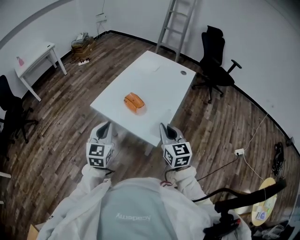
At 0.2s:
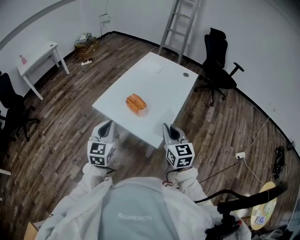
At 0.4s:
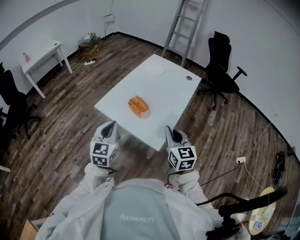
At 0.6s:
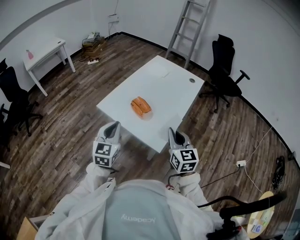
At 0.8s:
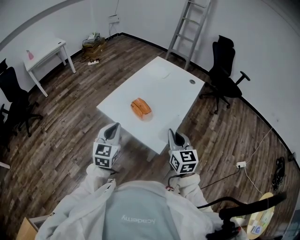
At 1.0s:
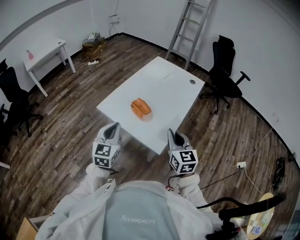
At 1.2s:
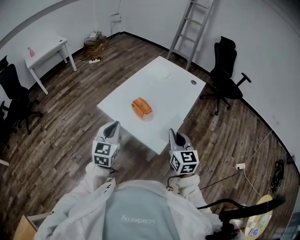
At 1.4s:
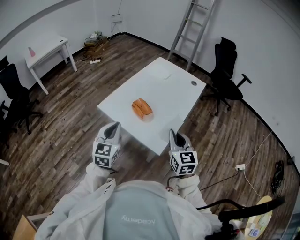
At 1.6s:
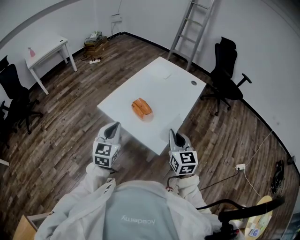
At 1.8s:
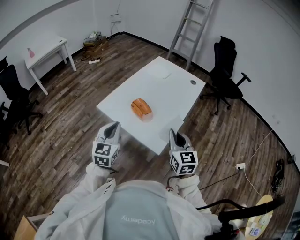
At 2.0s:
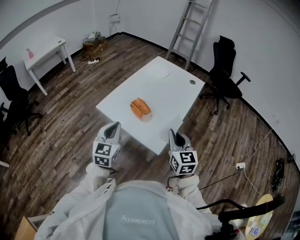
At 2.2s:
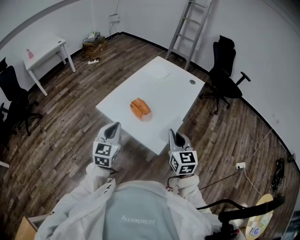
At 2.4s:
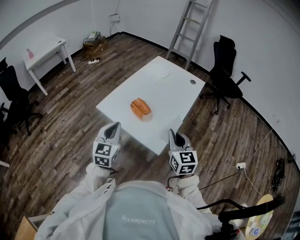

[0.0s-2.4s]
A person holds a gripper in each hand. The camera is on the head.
0.0s to 1.2s: There are only small adjustments of the grippers.
1.2s to 2.4s: Neither gripper changes place.

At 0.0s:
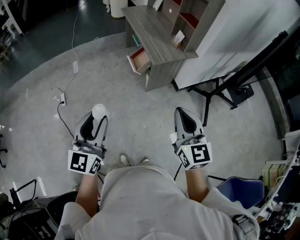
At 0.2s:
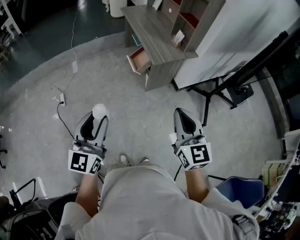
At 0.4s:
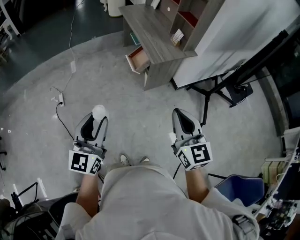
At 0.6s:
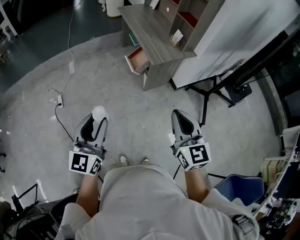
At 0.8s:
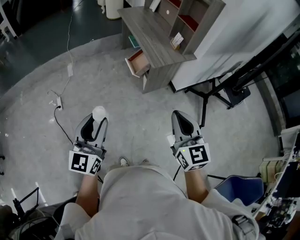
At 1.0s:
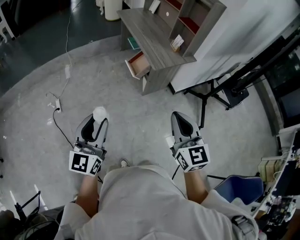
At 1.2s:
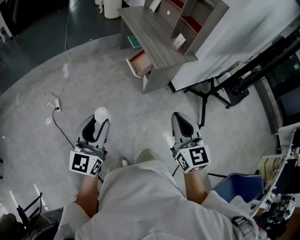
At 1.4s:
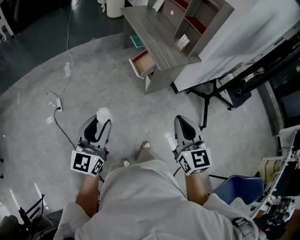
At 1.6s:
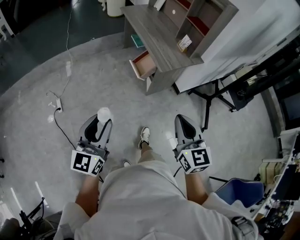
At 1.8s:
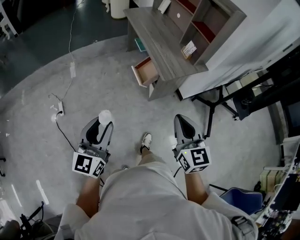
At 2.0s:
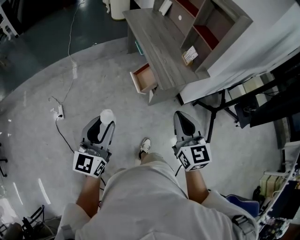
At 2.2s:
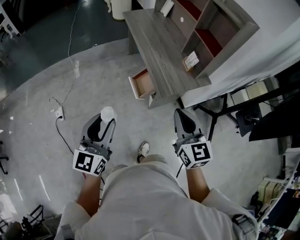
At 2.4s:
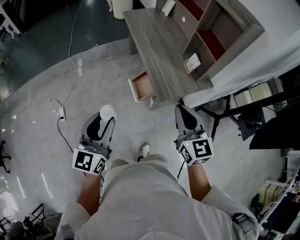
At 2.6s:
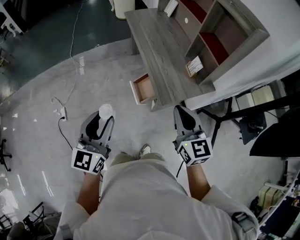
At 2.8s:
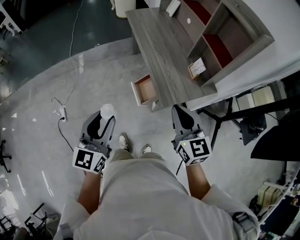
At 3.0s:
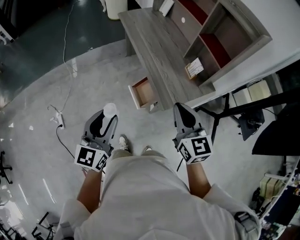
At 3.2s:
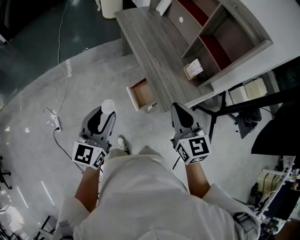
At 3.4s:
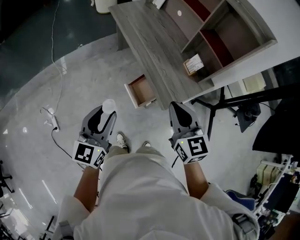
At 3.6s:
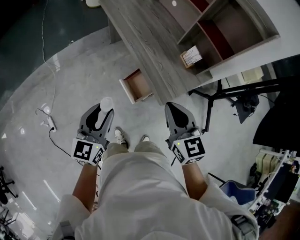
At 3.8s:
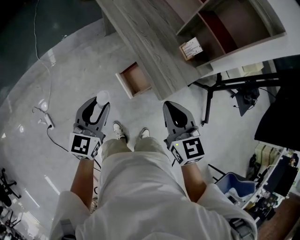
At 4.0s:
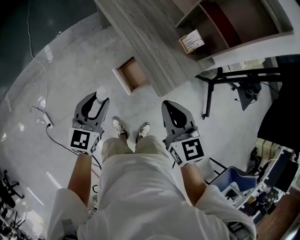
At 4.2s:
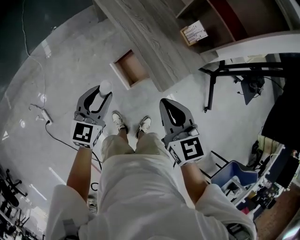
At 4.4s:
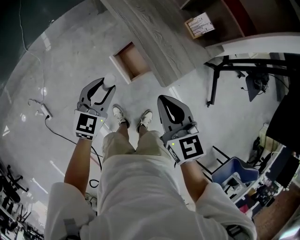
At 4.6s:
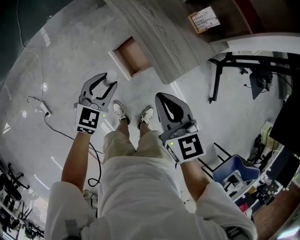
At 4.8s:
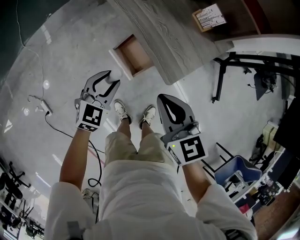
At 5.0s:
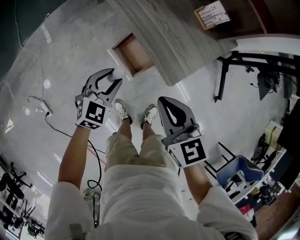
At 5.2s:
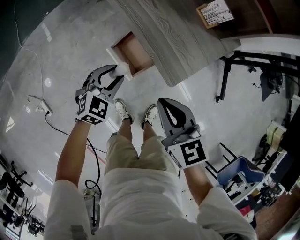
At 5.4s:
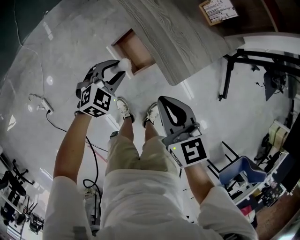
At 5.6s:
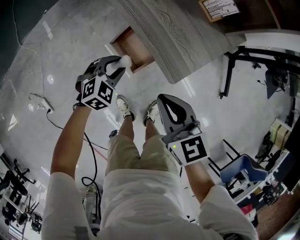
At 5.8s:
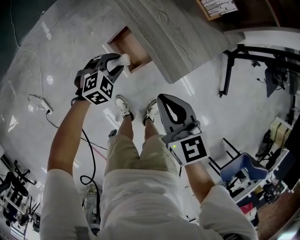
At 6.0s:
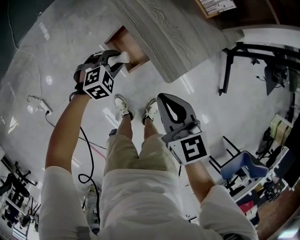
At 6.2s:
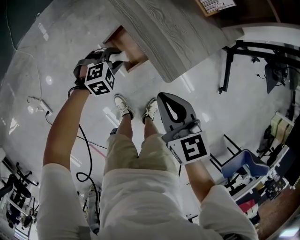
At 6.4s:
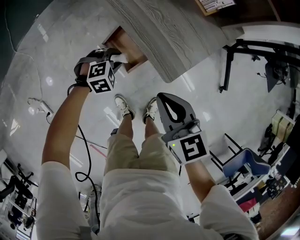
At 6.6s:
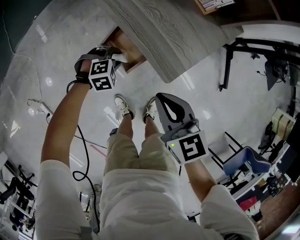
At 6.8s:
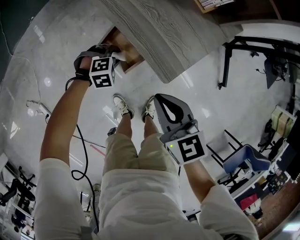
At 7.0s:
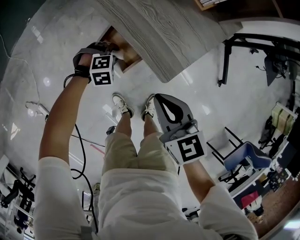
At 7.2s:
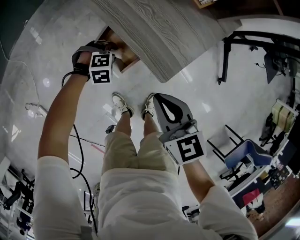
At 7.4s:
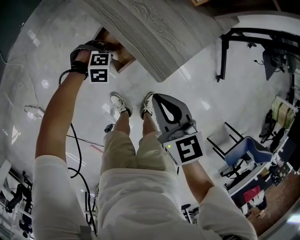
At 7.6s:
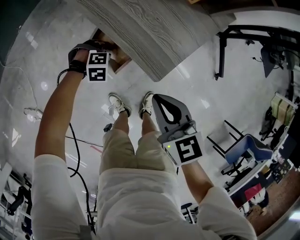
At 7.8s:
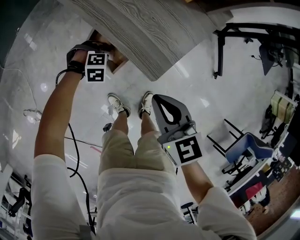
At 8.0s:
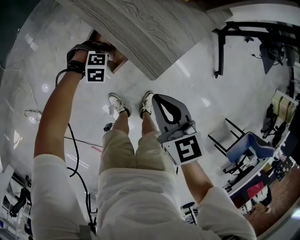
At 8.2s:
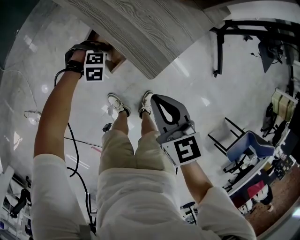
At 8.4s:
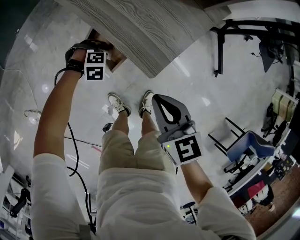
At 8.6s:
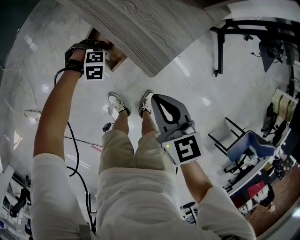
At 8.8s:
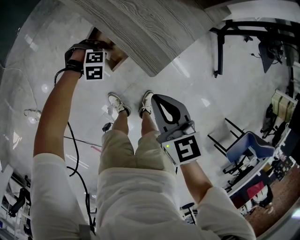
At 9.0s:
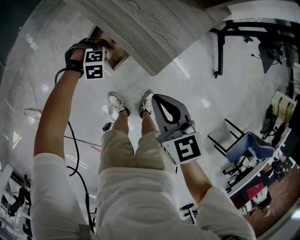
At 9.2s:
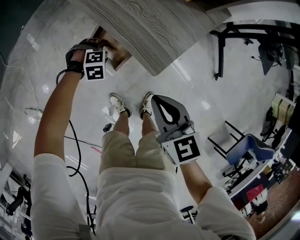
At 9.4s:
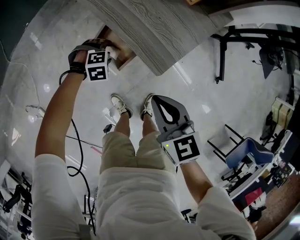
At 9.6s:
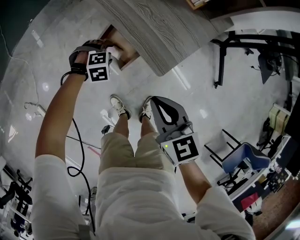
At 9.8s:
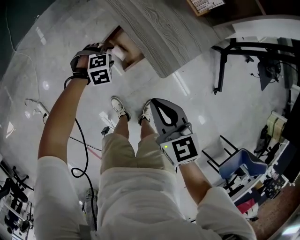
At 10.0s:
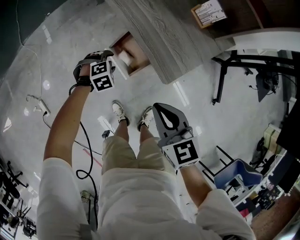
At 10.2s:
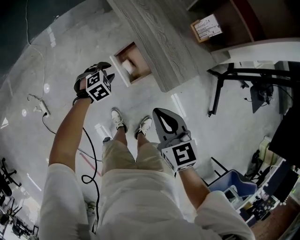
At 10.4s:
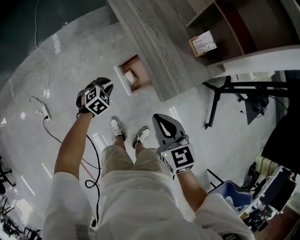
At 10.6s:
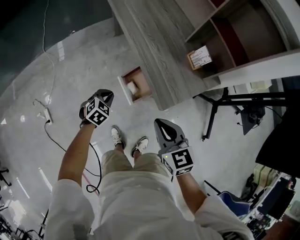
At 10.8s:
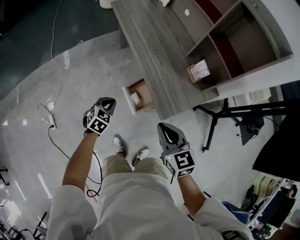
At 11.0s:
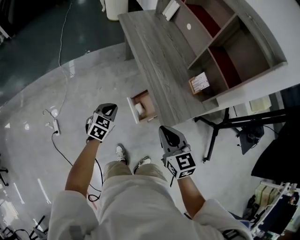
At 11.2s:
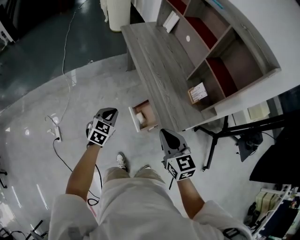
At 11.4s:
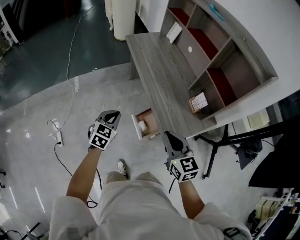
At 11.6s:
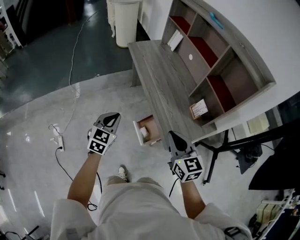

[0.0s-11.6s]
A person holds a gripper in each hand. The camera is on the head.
0.0s to 1.4s: The left gripper heads to the left and forward, covering some 10 cm, while the right gripper heads to the left, covering some 10 cm.
1.4s to 2.8s: Both grippers travel together forward, some 35 cm.
2.8s to 4.4s: The left gripper is displaced downward and forward by about 30 cm, and changes its angle by roughly 30 degrees; the right gripper heads downward, forward and to the left, covering approximately 15 cm.
4.4s to 5.8s: The left gripper travels downward by roughly 20 cm, and changes its angle by about 50 degrees. The right gripper goes roughly 10 cm downward.
5.8s to 7.2s: The left gripper heads downward, covering roughly 10 cm, and swivels approximately 30 degrees.
7.2s to 8.8s: The grippers stay close to where they were, moving slightly.
8.8s to 10.2s: The left gripper moves upward, roughly 10 cm, and twists approximately 40 degrees counterclockwise, seen from behind, while the right gripper moves upward, approximately 5 cm.
10.2s to 11.6s: The left gripper goes about 35 cm upward, tips its fingers upward by approximately 40 degrees, and closes its fingers, while the right gripper heads upward and forward, covering approximately 20 cm.

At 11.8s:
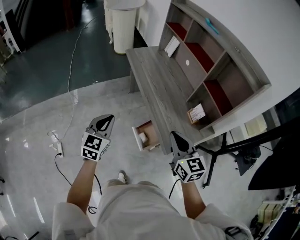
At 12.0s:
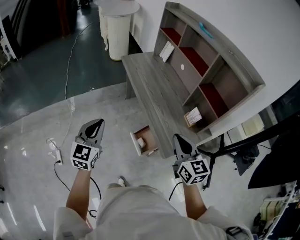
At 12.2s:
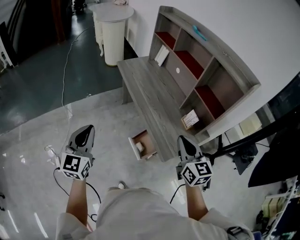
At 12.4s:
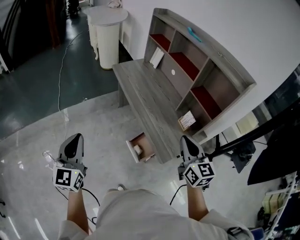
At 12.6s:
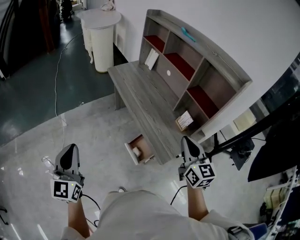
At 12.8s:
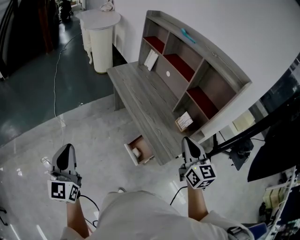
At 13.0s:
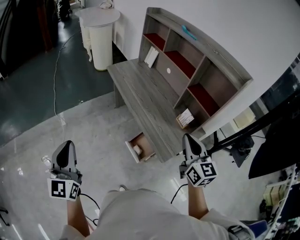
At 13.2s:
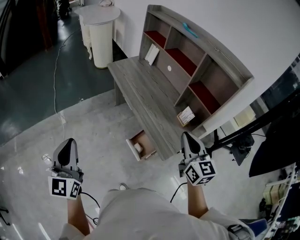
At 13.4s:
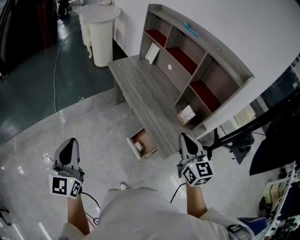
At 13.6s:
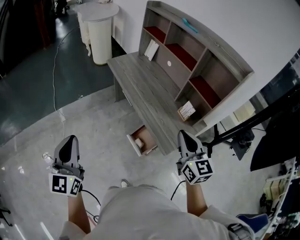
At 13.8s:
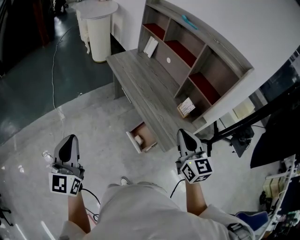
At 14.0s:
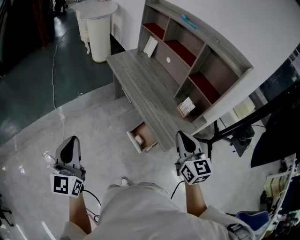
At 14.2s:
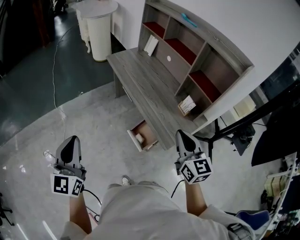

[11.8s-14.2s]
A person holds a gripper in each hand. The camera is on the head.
11.8s to 13.0s: The right gripper heads upward and to the right, covering about 10 cm. The left gripper moves upward, to the left and backward, about 20 cm, and swivels roughly 20 degrees.
13.0s to 14.2s: The right gripper shifts by approximately 5 cm.

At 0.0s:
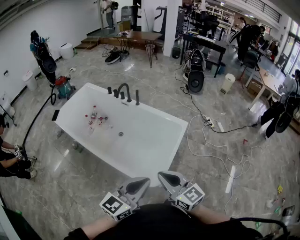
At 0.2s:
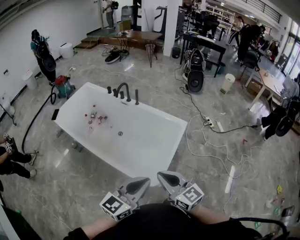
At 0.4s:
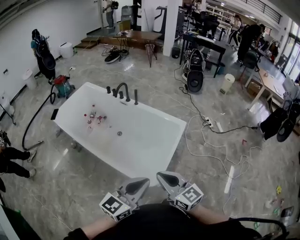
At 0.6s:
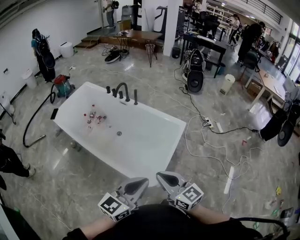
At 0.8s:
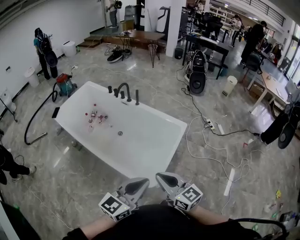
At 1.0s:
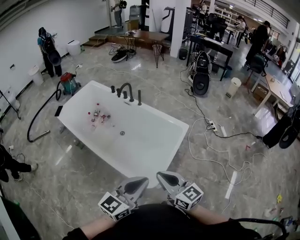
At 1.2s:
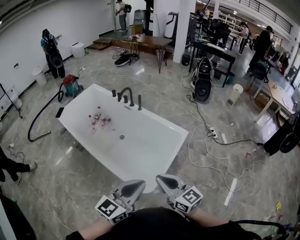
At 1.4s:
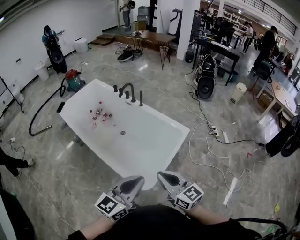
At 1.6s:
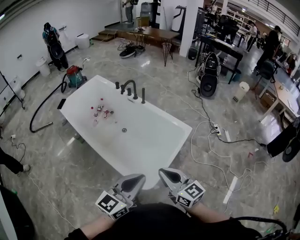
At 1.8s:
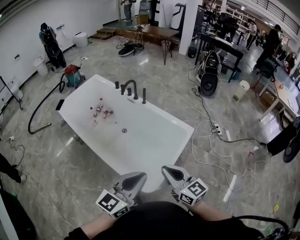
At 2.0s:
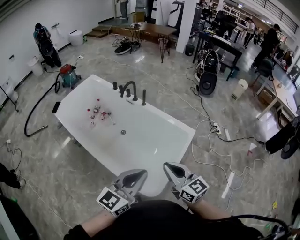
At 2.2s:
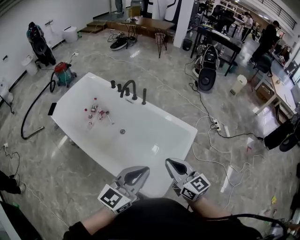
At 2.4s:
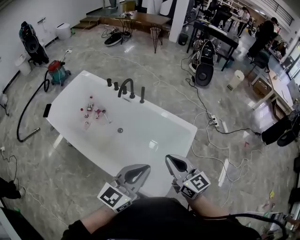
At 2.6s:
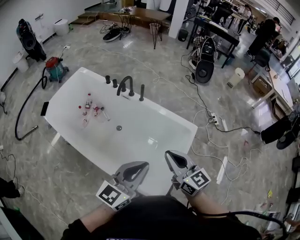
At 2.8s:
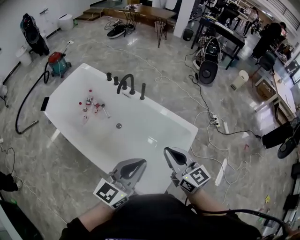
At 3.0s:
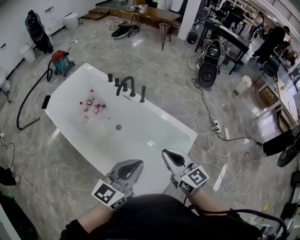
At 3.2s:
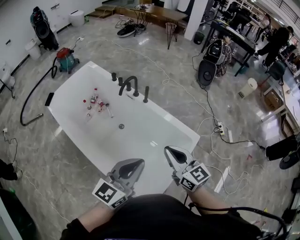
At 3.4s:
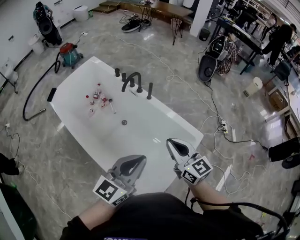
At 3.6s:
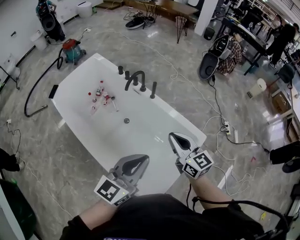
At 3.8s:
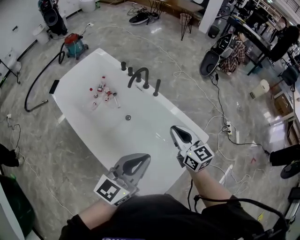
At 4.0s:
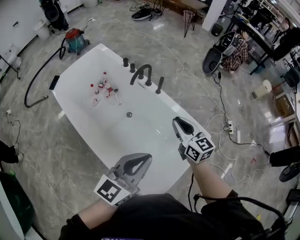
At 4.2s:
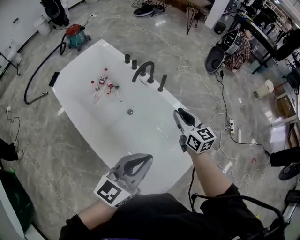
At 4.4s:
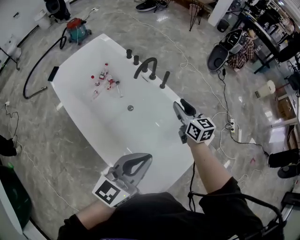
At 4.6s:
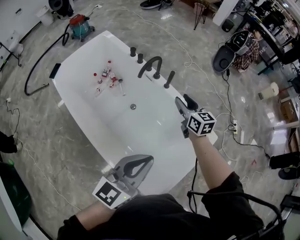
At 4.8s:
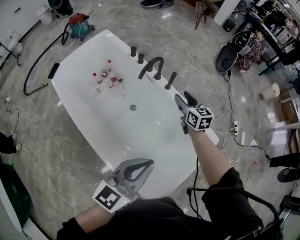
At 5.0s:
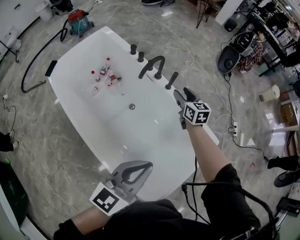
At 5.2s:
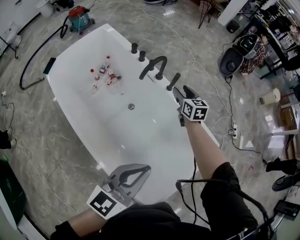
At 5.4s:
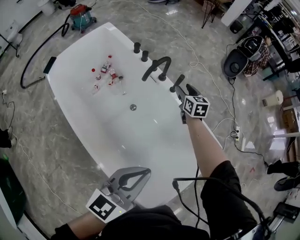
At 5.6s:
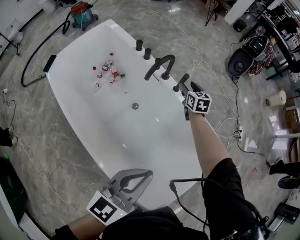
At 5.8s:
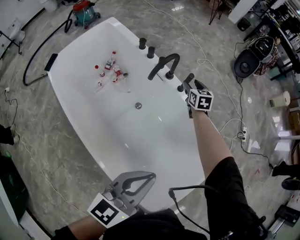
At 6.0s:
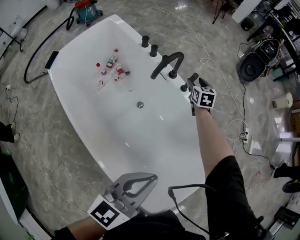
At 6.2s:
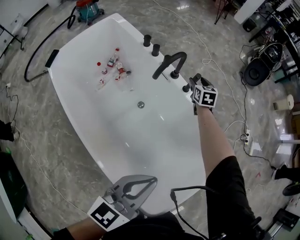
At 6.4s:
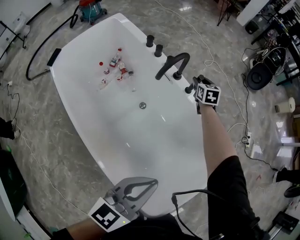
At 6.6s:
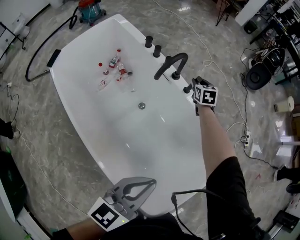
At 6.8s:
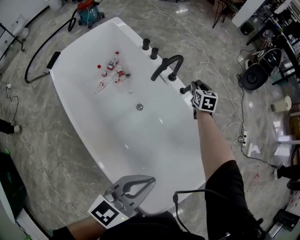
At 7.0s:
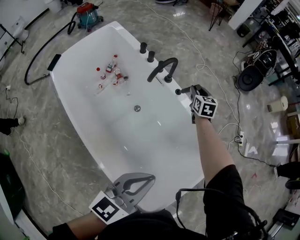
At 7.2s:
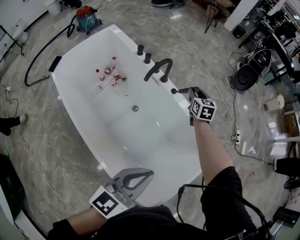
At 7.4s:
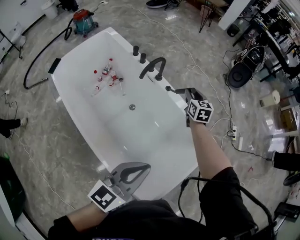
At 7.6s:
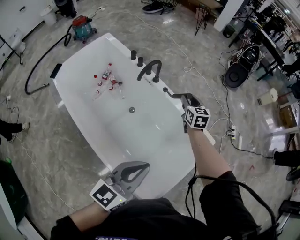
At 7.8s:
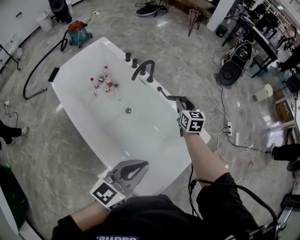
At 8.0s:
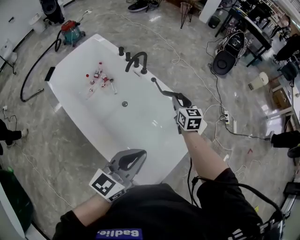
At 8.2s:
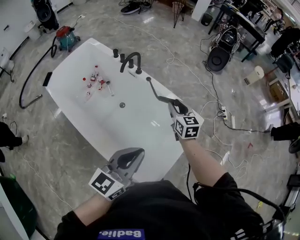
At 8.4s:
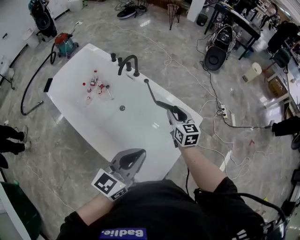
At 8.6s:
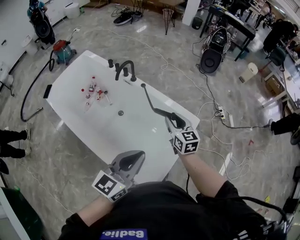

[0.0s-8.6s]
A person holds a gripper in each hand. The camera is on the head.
0.0s to 1.4s: The grippers both shift to the right by approximately 5 cm.
1.4s to 2.8s: The grippers both shift forward by approximately 30 cm.
2.8s to 4.4s: The right gripper moves forward and downward, some 35 cm, and opens its fingers; the left gripper moves forward, approximately 10 cm.
4.4s to 5.8s: The left gripper goes approximately 15 cm downward and forward. Meanwhile the right gripper shifts roughly 35 cm forward and downward, and changes its angle by about 20 degrees.
5.8s to 7.2s: The right gripper goes about 10 cm upward and to the right. The left gripper ends up roughly 5 cm from where it was.
7.2s to 8.6s: The left gripper heads backward, upward and to the right, covering roughly 20 cm. The right gripper goes approximately 40 cm backward and upward.
